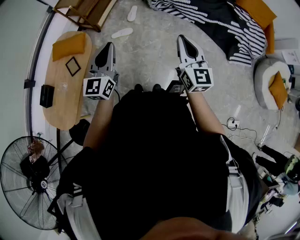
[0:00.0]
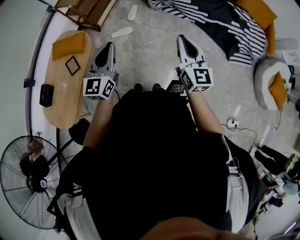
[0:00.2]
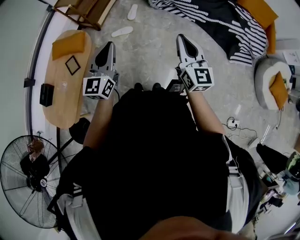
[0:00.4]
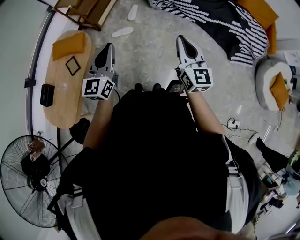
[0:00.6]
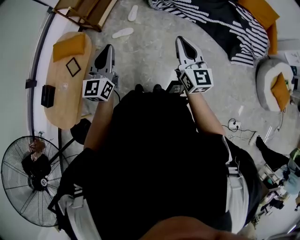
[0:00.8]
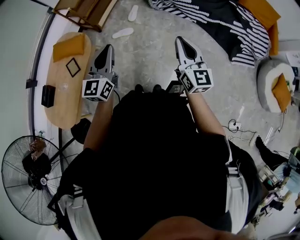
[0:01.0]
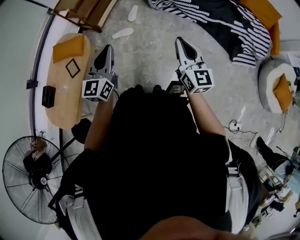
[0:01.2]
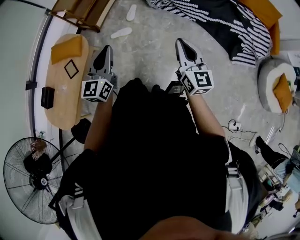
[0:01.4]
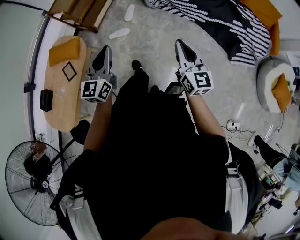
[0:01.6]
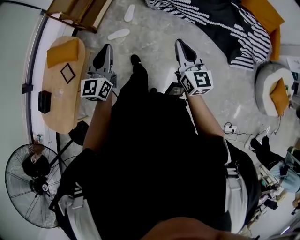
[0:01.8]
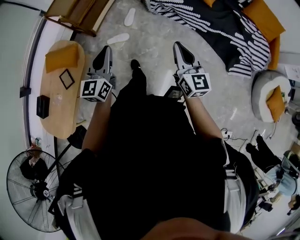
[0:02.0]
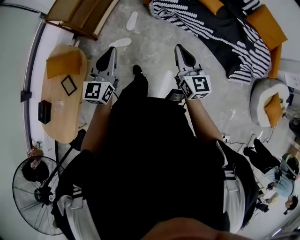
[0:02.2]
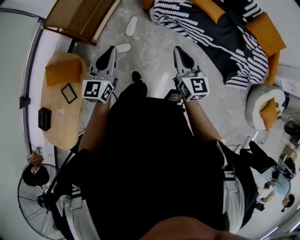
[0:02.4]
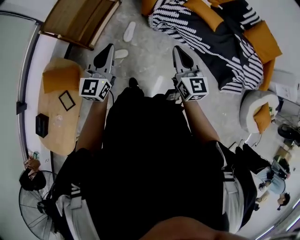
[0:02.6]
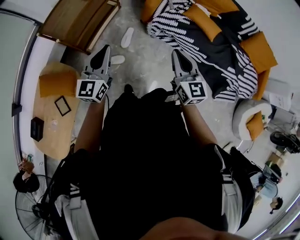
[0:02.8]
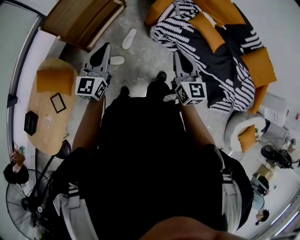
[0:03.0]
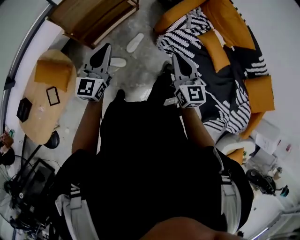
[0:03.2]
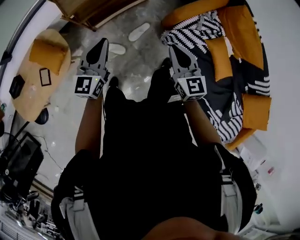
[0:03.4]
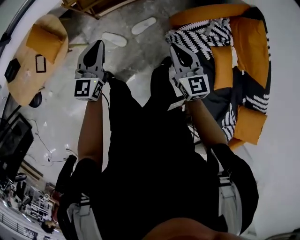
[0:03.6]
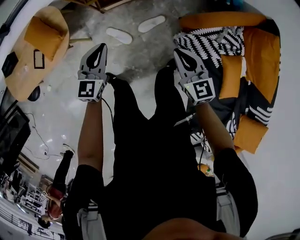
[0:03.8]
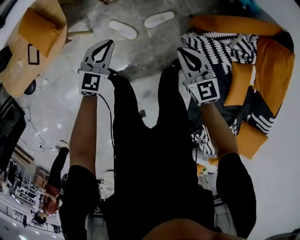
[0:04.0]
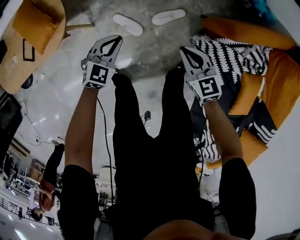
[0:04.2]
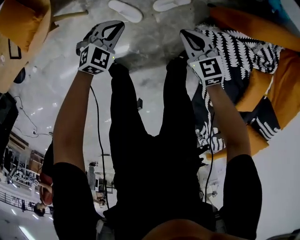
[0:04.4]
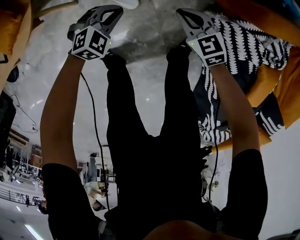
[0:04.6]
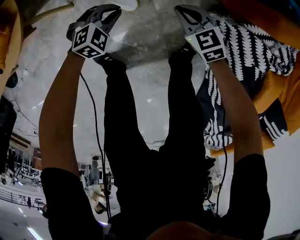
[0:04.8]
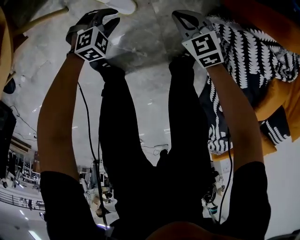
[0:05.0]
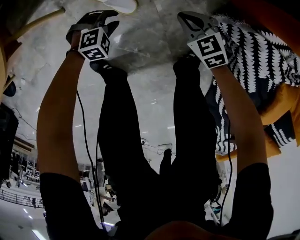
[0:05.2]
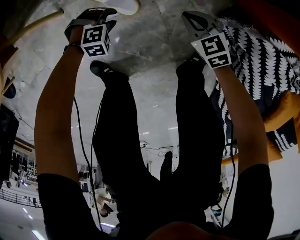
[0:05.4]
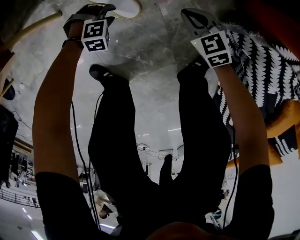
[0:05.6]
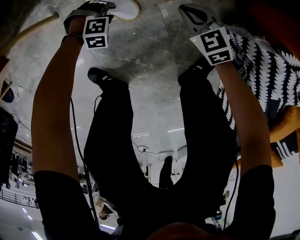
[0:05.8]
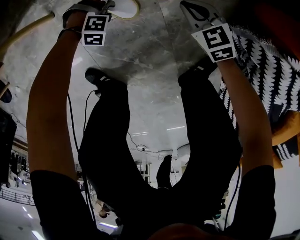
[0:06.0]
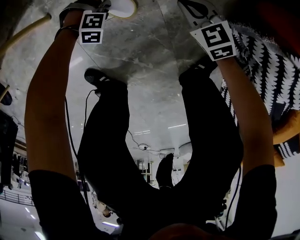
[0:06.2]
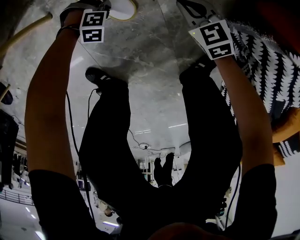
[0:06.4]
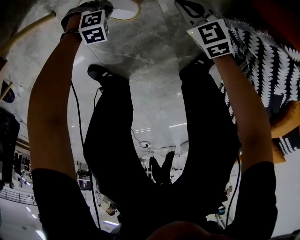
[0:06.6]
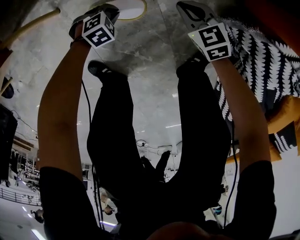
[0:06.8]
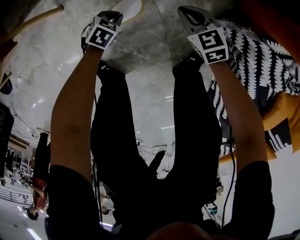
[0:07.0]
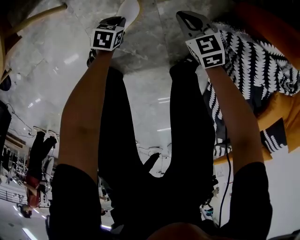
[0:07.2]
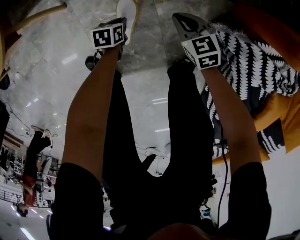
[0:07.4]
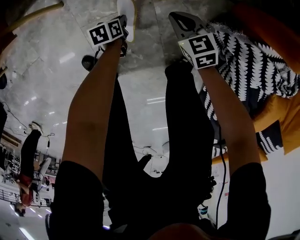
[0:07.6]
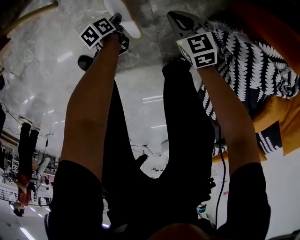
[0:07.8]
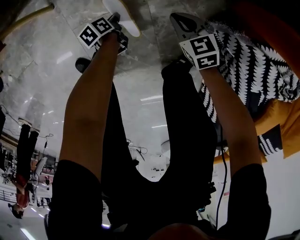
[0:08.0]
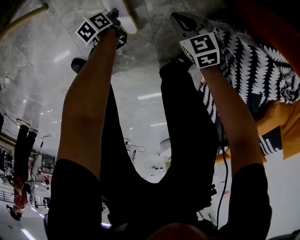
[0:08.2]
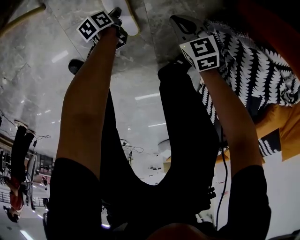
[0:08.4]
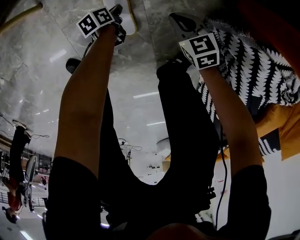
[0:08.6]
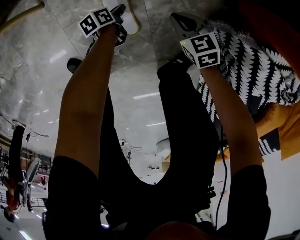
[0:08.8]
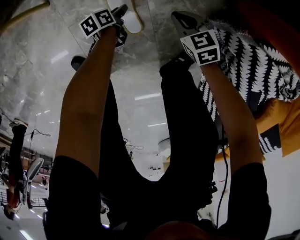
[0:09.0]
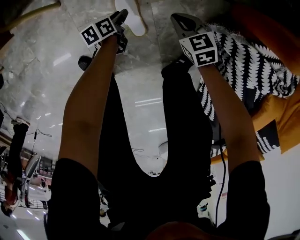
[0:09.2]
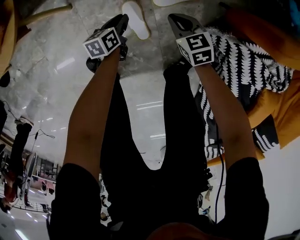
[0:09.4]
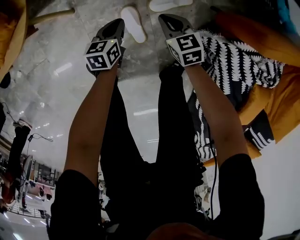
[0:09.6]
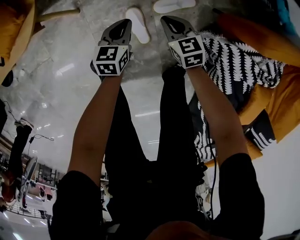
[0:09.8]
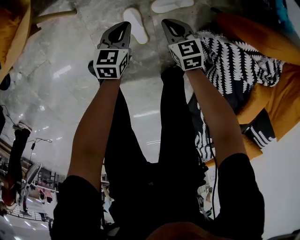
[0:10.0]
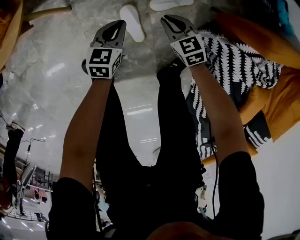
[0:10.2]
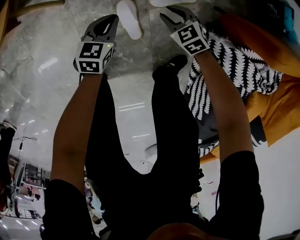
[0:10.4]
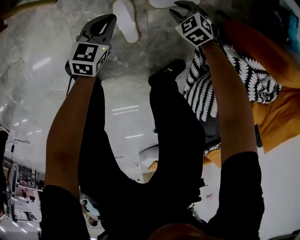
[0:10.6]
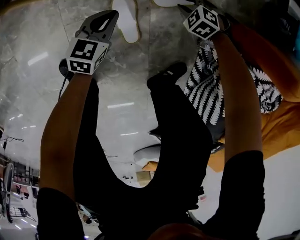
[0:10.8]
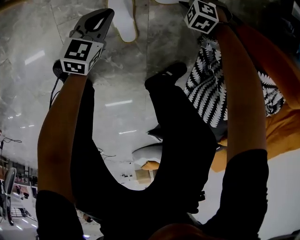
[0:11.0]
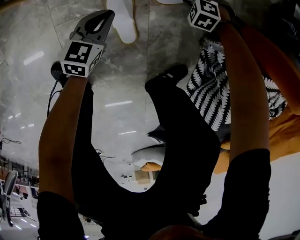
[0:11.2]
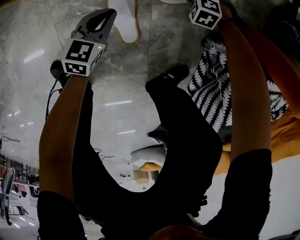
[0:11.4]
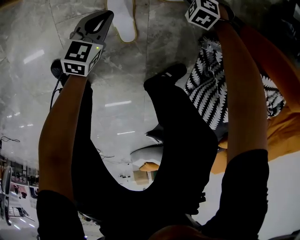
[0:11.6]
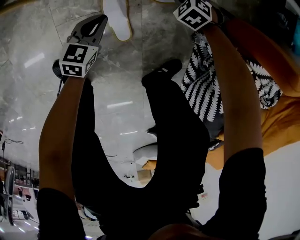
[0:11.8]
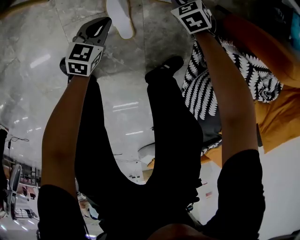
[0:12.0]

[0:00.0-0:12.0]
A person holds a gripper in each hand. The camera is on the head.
0:00.0 to 0:01.6: The left gripper moves forward, approximately 5 cm. Meanwhile the right gripper moves to the right and downward, roughly 10 cm.
0:01.6 to 0:03.0: The two grippers travel together, forward, roughly 40 cm.
0:03.0 to 0:04.4: Both grippers travel together downward, some 50 cm. The right gripper angles its fingers downward, by roughly 30 degrees, while the left gripper points its fingers about 50 degrees further downward.
0:04.4 to 0:06.0: Both grippers move downward, roughly 40 cm. The left gripper angles its fingers downward, by roughly 30 degrees, and opens its fingers.
0:06.0 to 0:07.6: Both grippers move upward, about 10 cm. The left gripper twists roughly 130 degrees counterclockwise, seen from behind, and closes up.
0:07.6 to 0:09.0: Both grippers travel together downward, some 5 cm. The left gripper opens up.
0:09.0 to 0:10.4: The right gripper goes about 5 cm forward, reaches approximately 15 cm upward, then returns, swivels some 20 degrees, and opens; the left gripper shifts approximately 20 cm upward, rolls clockwise, seen from behind, by some 50 degrees, and closes.
0:10.4 to 0:12.0: The two grippers go about 10 cm downward. The right gripper closes its fingers.

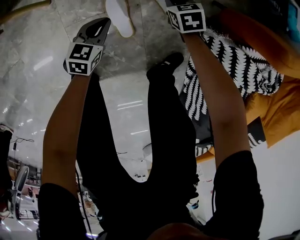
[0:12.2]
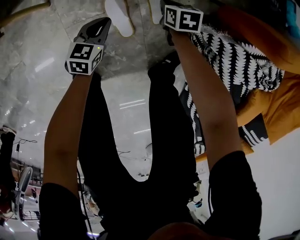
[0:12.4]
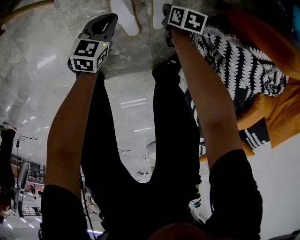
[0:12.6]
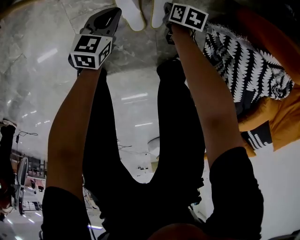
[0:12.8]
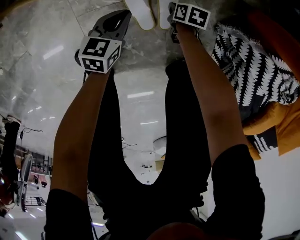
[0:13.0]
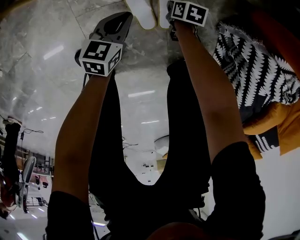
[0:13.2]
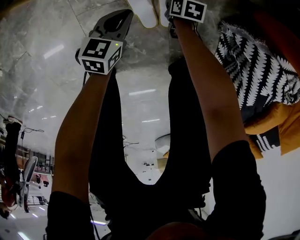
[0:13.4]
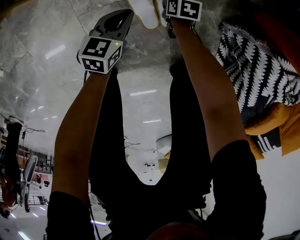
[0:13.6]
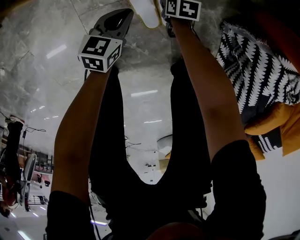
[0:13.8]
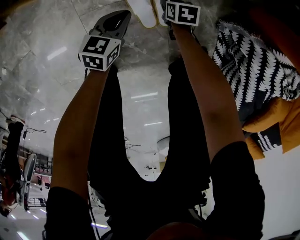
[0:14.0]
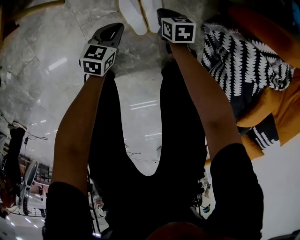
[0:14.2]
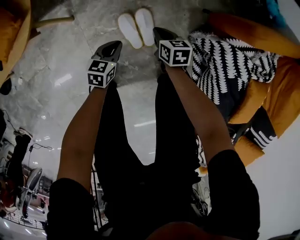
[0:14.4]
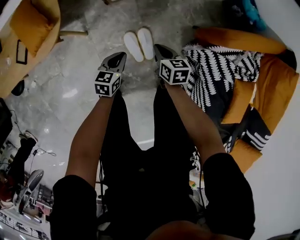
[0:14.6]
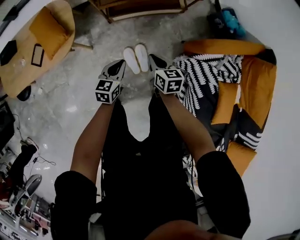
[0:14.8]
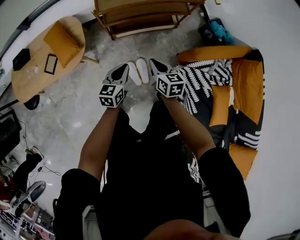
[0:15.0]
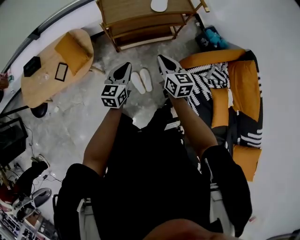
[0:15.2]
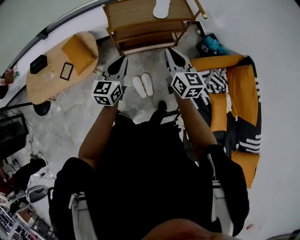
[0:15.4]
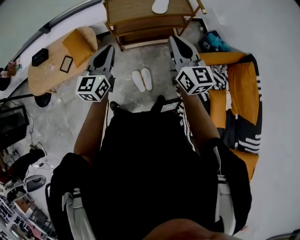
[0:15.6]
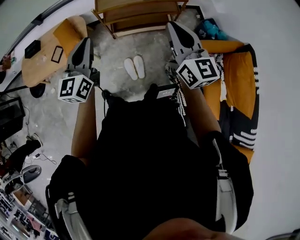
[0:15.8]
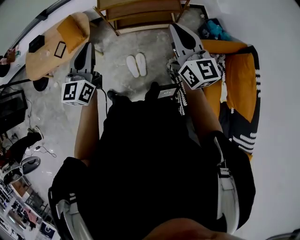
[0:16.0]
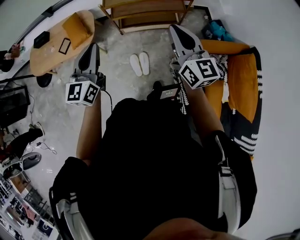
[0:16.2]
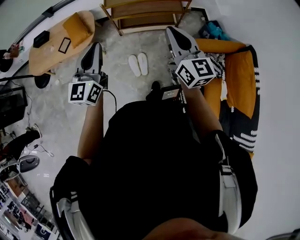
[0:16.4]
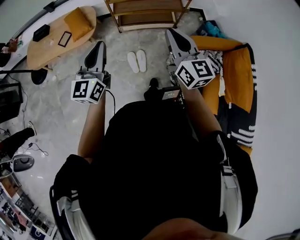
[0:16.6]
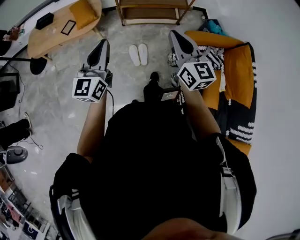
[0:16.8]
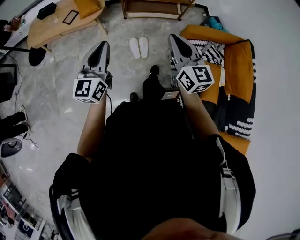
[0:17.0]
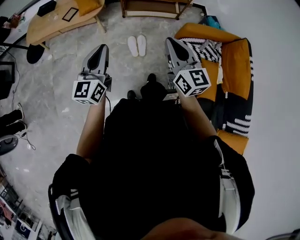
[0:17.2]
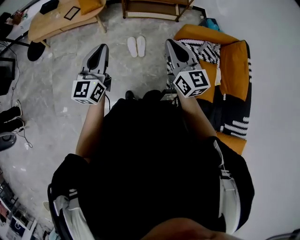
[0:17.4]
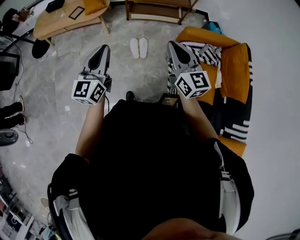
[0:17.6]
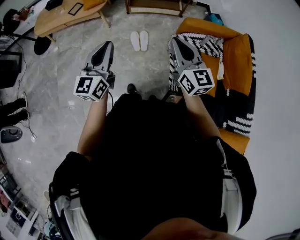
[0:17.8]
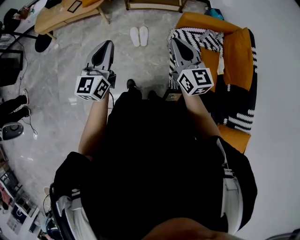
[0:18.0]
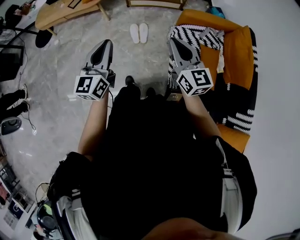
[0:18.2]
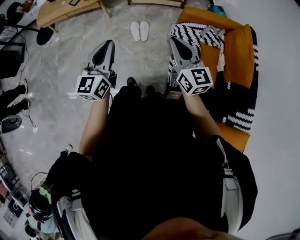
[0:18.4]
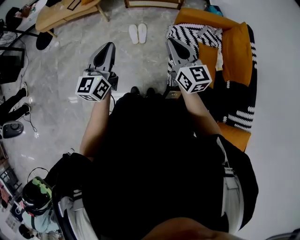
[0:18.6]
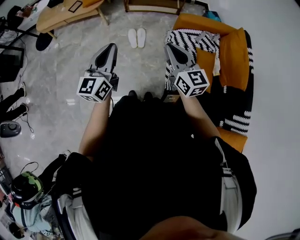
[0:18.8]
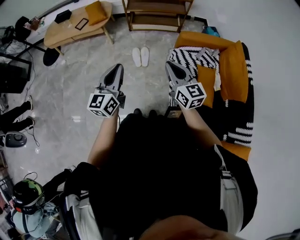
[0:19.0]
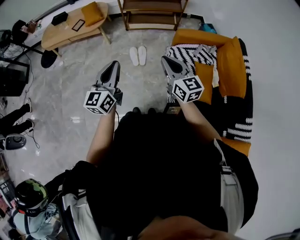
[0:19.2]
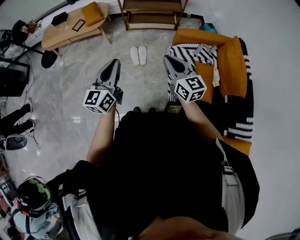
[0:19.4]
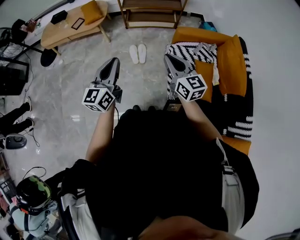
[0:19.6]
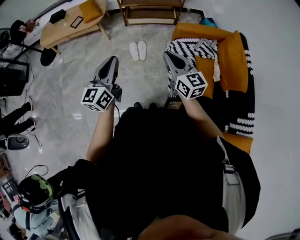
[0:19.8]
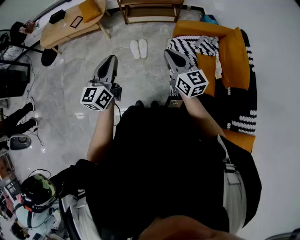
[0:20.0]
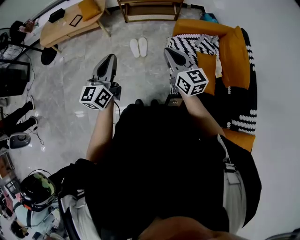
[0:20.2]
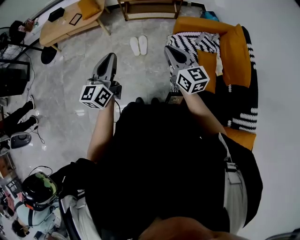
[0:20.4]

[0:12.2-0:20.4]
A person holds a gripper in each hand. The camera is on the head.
0:12.2 to 0:13.8: The right gripper shifts roughly 15 cm downward, backward and to the left, and rotates about 30 degrees.
0:13.8 to 0:15.4: The grippers both shift upward by some 80 cm. The left gripper tilts its fingers roughly 30 degrees upward, while the right gripper tips its fingers upward by some 60 degrees.
0:15.4 to 0:17.2: Both grippers travel together backward, roughly 35 cm. The left gripper swivels about 20 degrees.
0:17.2 to 0:18.8: The two grippers go roughly 20 cm backward and to the right.
0:18.8 to 0:20.4: The grippers move only a little.

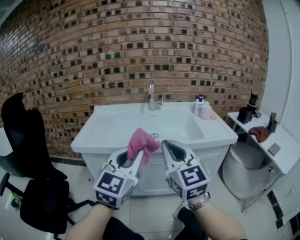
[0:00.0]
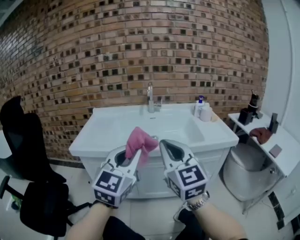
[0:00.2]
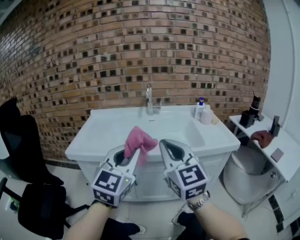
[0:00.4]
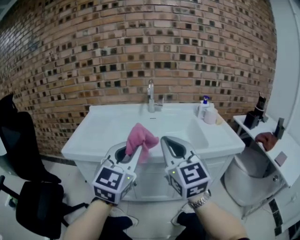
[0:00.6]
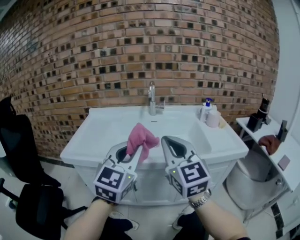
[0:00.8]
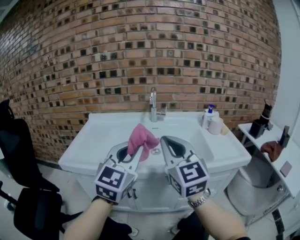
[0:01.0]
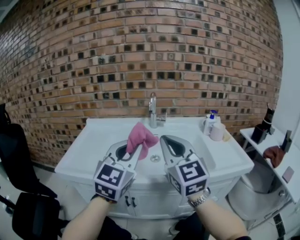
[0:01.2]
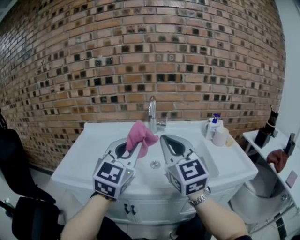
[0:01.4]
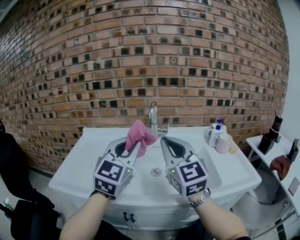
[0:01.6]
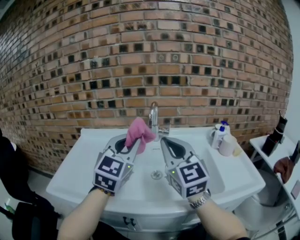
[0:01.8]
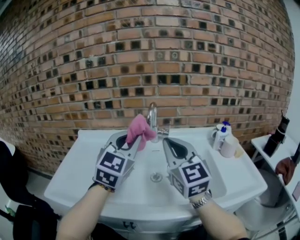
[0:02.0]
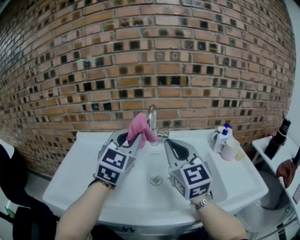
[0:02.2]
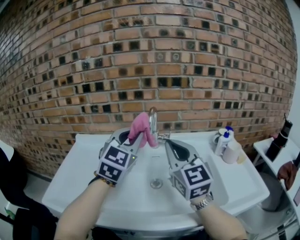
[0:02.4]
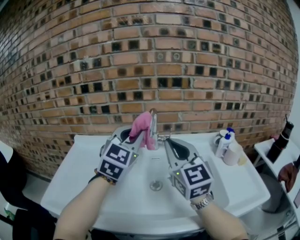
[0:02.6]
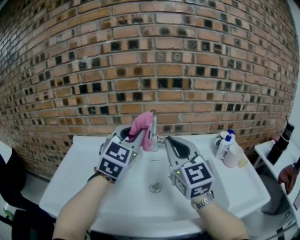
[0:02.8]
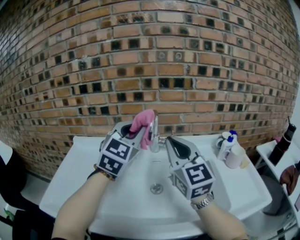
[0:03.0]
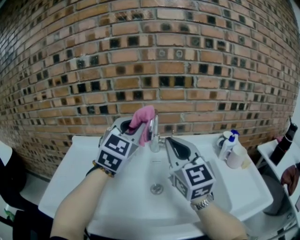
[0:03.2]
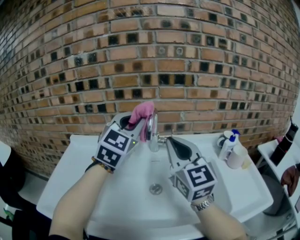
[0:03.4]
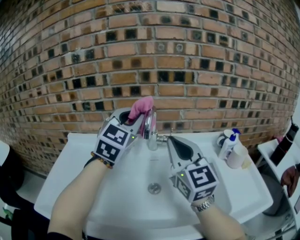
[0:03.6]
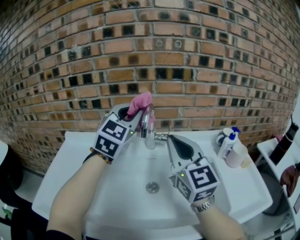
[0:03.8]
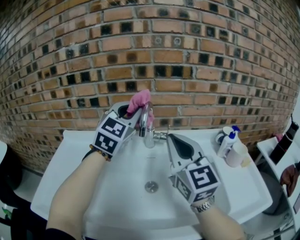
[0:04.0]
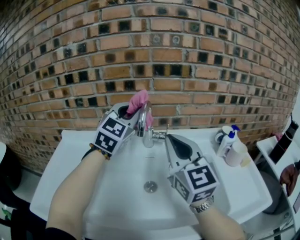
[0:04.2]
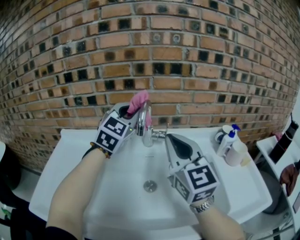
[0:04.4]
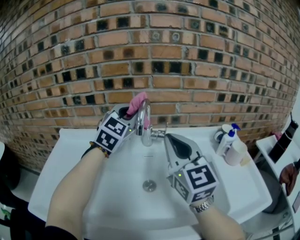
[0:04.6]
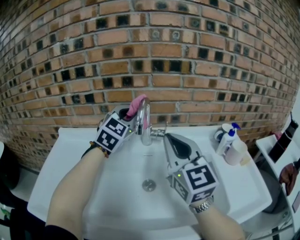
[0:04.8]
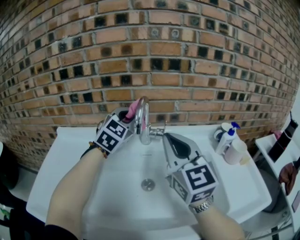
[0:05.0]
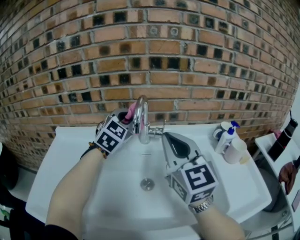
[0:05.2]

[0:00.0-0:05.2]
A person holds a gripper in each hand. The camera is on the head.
0:00.0 to 0:01.8: The two grippers go some 35 cm forward.
0:01.8 to 0:03.4: Both grippers move forward, approximately 15 cm.
0:03.4 to 0:05.2: The left gripper goes some 15 cm forward and downward.
